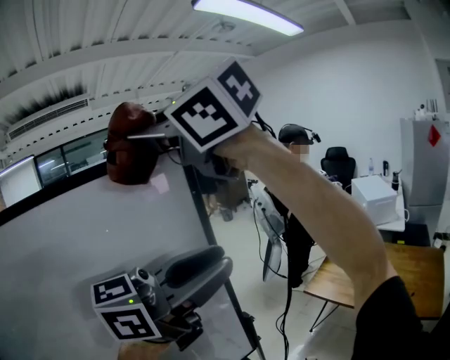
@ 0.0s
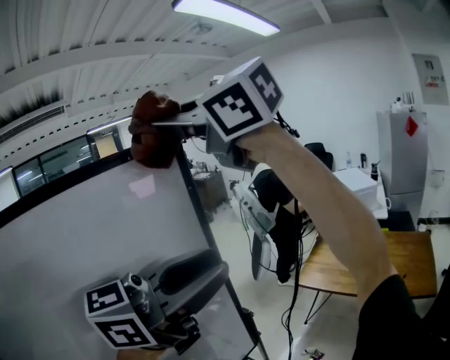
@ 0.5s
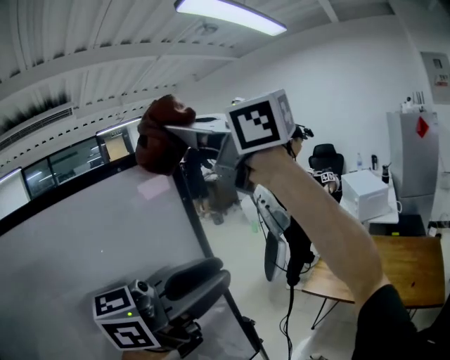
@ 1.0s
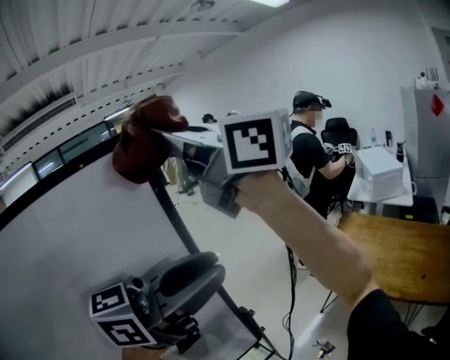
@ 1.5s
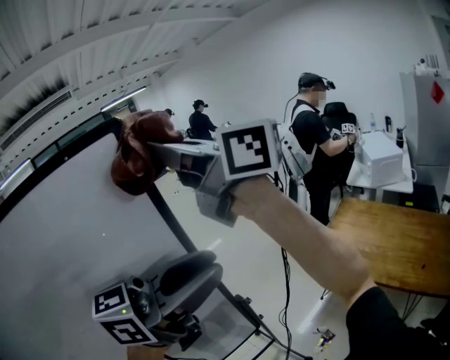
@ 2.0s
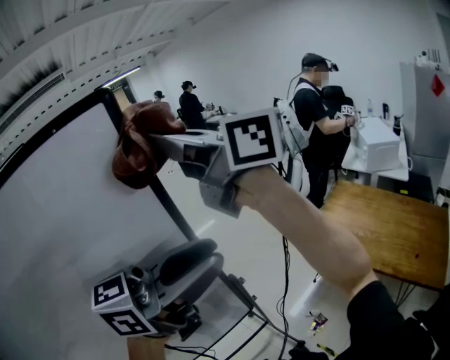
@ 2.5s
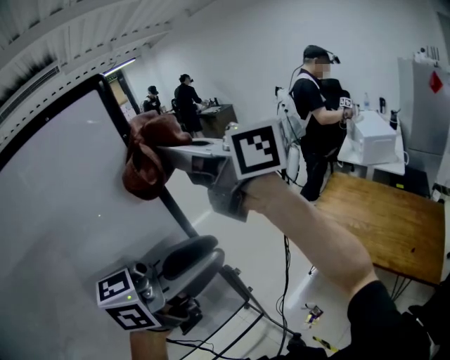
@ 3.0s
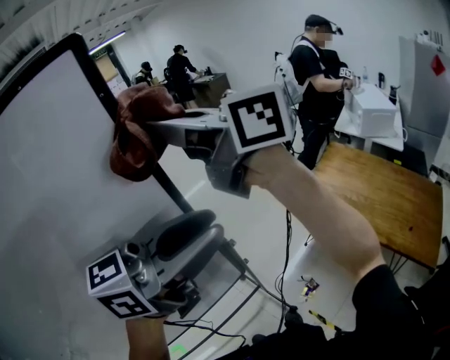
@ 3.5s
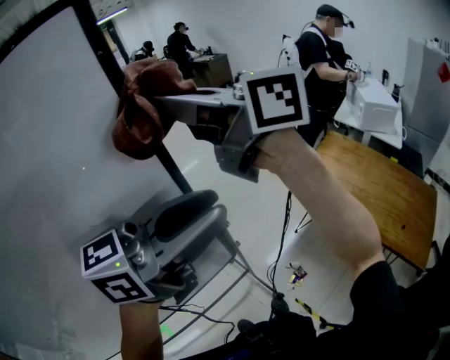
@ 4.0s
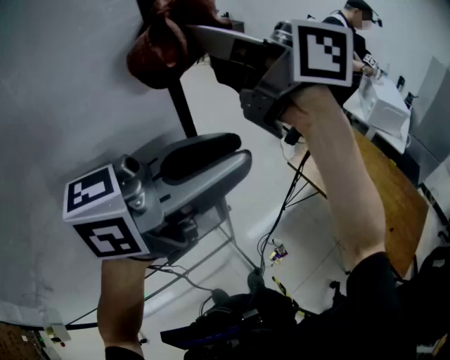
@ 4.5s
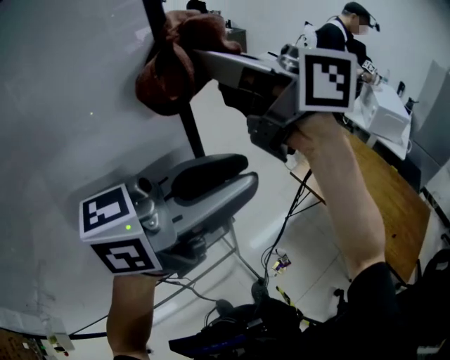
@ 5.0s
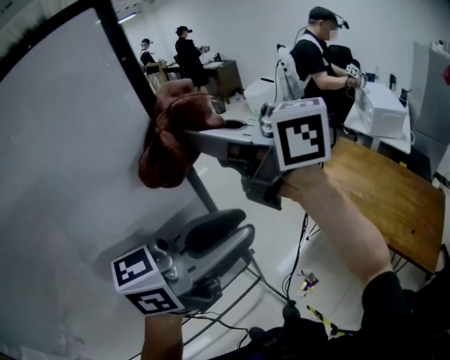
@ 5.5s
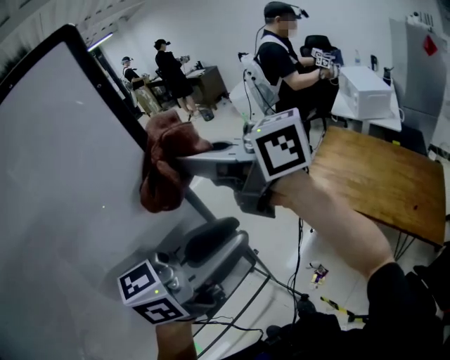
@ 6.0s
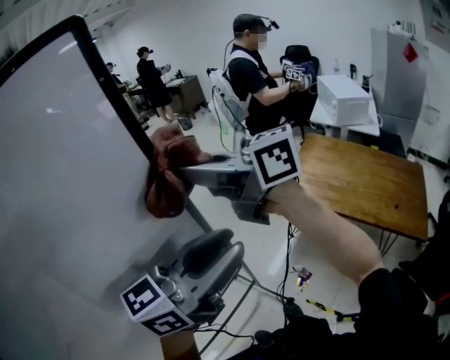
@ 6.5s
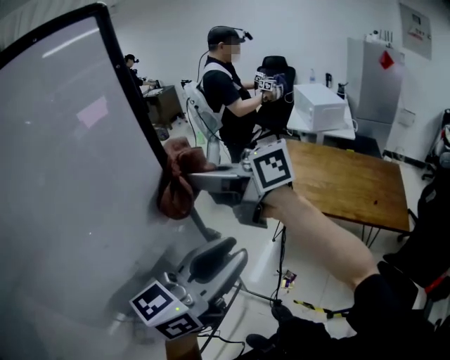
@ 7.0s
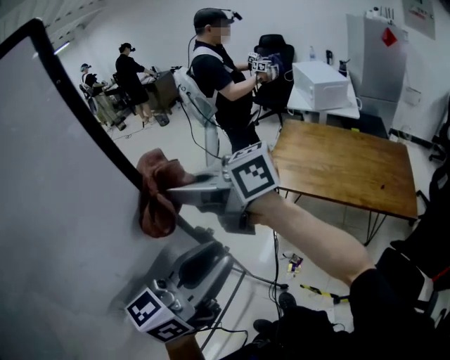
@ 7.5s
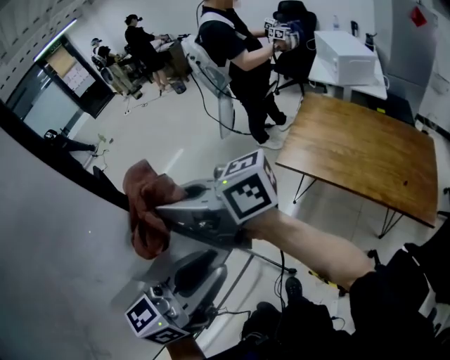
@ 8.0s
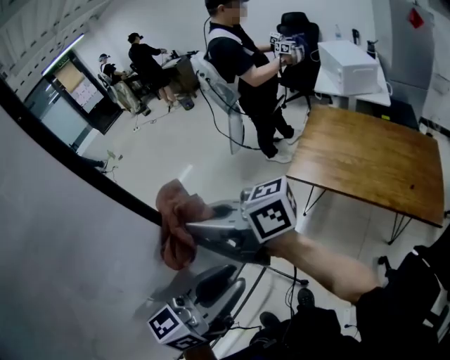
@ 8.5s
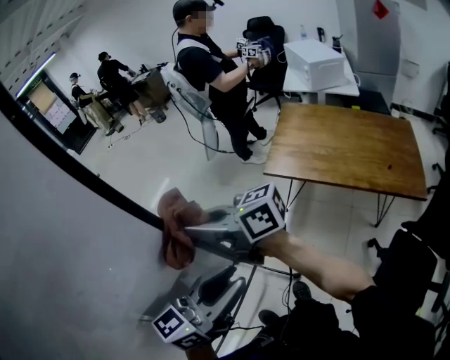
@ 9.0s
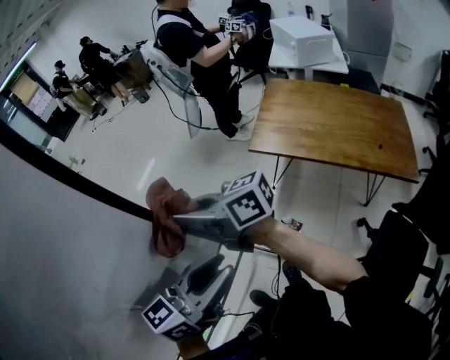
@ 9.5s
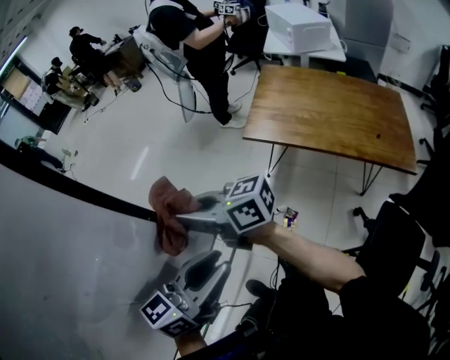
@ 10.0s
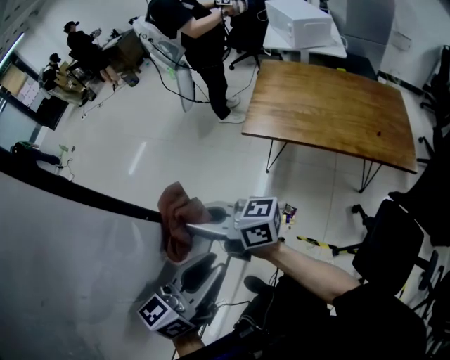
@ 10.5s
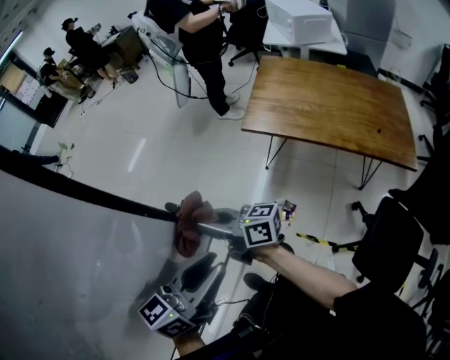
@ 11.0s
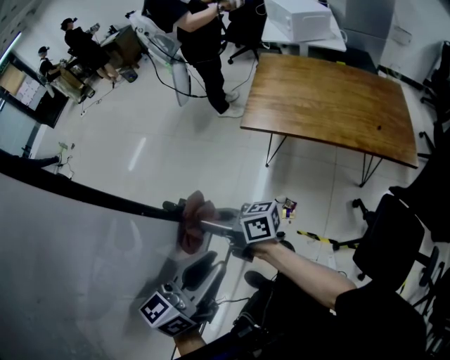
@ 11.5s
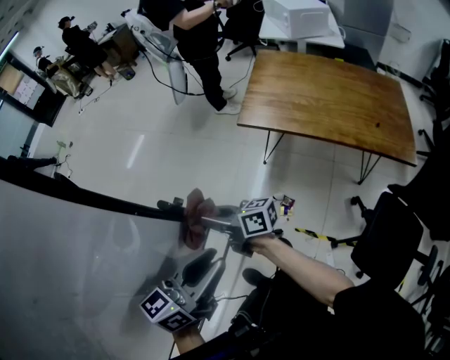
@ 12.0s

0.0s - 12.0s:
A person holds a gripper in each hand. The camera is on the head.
0.0s - 2.0s: The right gripper moves roughly 15 cm, and turns by about 50 degrees, while the left gripper ends up approximately 5 cm from where it was.
2.0s - 4.0s: The right gripper shifts roughly 15 cm downward; the left gripper travels downward by roughly 10 cm.
4.0s - 6.0s: The grippers make only small movements.
6.0s - 8.0s: Both grippers travel together downward, some 15 cm.
8.0s - 10.0s: Both grippers move downward, approximately 15 cm. The right gripper turns by some 20 degrees.
10.0s - 12.0s: The left gripper changes place by approximately 5 cm; the right gripper travels downward by some 15 cm, and swivels about 20 degrees.

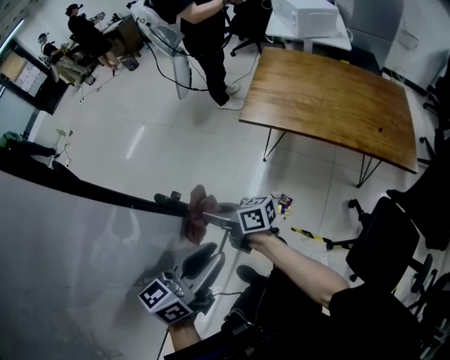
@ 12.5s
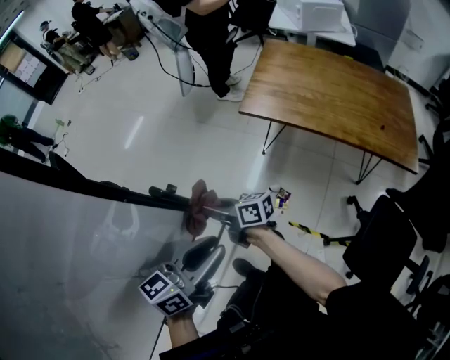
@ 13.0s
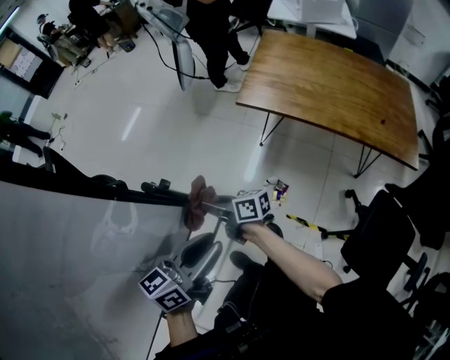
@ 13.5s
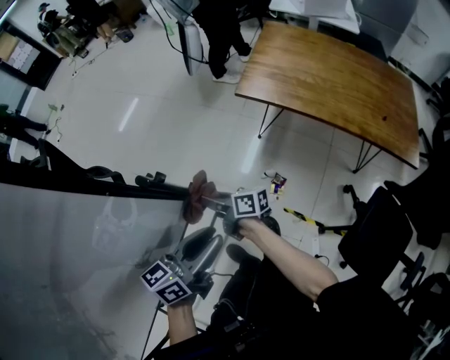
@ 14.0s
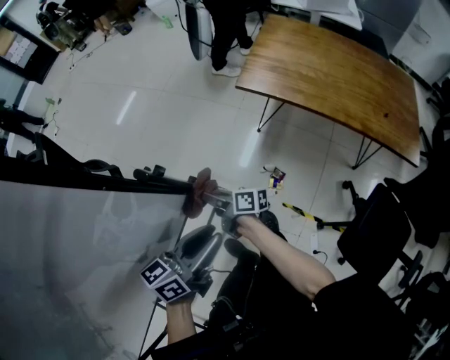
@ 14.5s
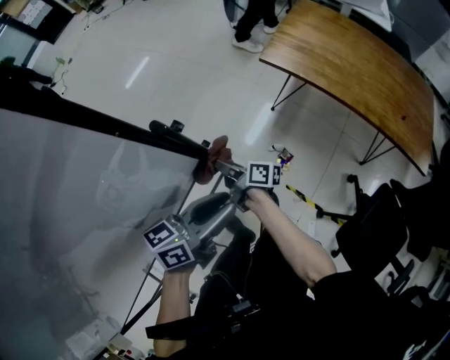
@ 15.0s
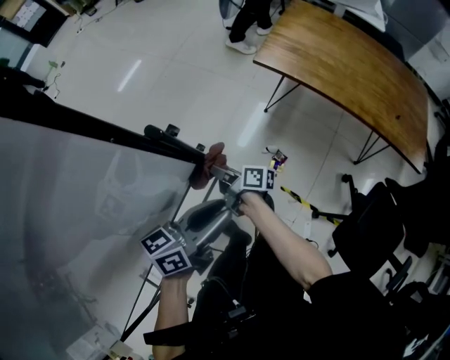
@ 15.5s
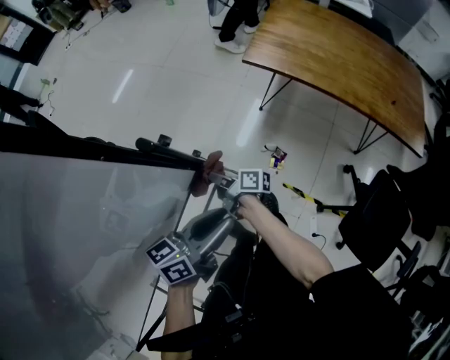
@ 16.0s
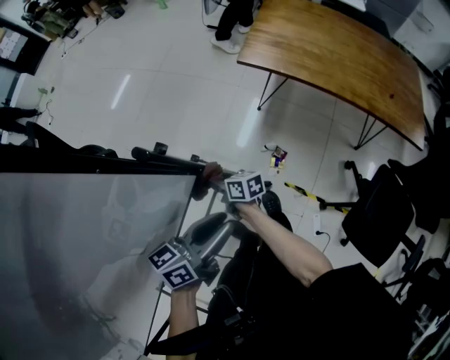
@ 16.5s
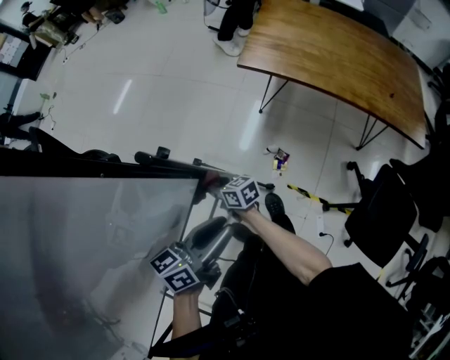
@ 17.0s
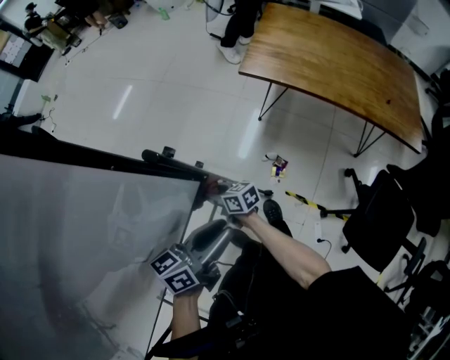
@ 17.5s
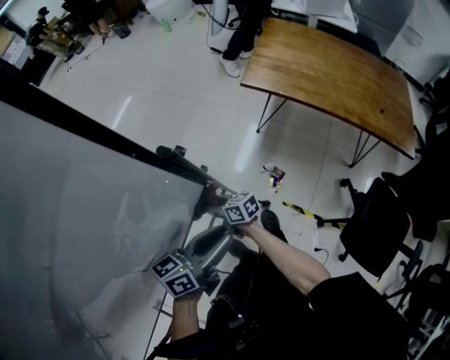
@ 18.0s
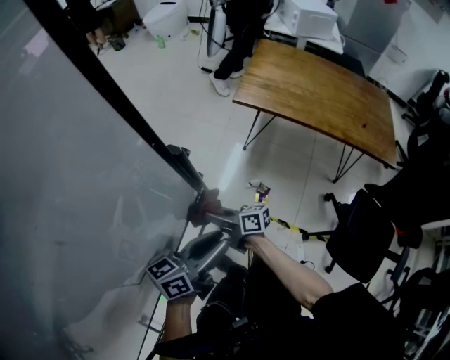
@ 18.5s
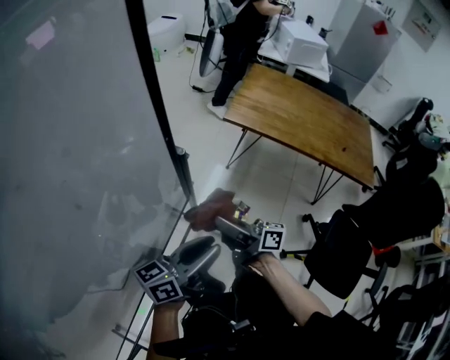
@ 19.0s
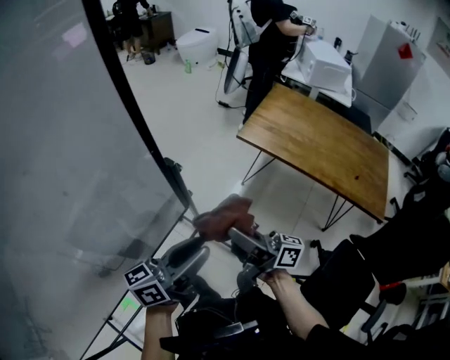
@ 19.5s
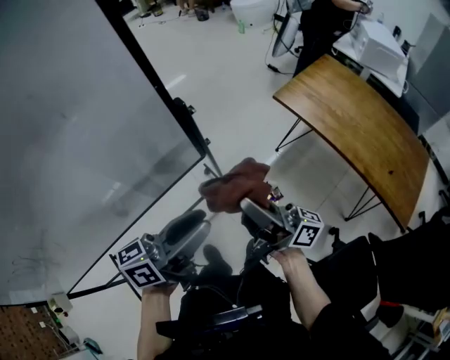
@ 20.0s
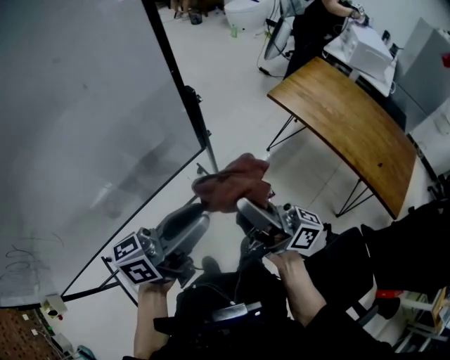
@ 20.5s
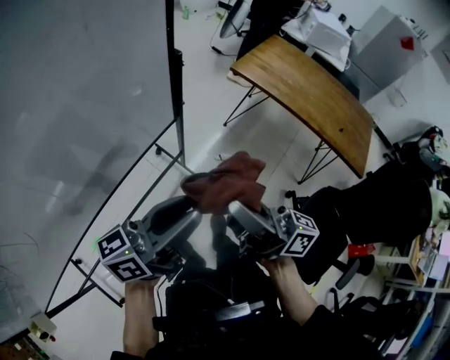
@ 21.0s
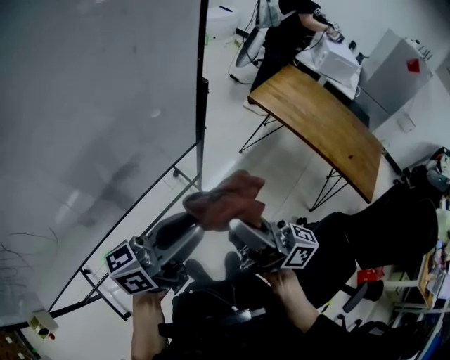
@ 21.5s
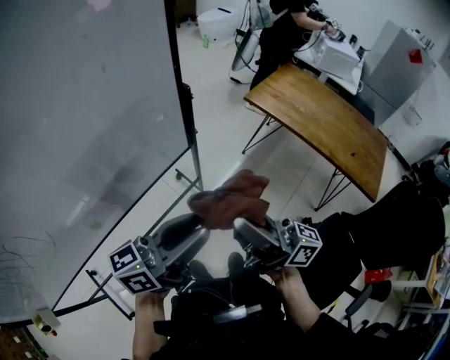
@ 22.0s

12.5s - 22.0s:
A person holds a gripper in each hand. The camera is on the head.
12.5s - 14.5s: The right gripper heads downward, covering some 15 cm, and swivels roughly 20 degrees; the left gripper shifts about 10 cm downward.
14.5s - 16.5s: The right gripper heads downward, covering about 10 cm, and turns by some 30 degrees.
16.5s - 18.0s: The right gripper goes about 5 cm to the left and backward.
18.0s - 20.0s: The left gripper shifts approximately 15 cm upward, backward and to the right, and swivels some 30 degrees. Meanwhile the right gripper moves upward and to the right, some 40 cm, and tips its fingers upward by some 50 degrees.
20.0s - 22.0s: The right gripper is displaced backward and upward by about 20 cm, while the left gripper goes roughly 10 cm backward.

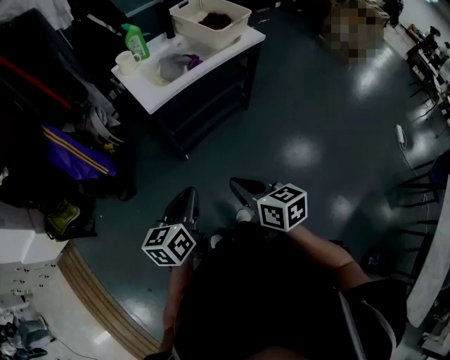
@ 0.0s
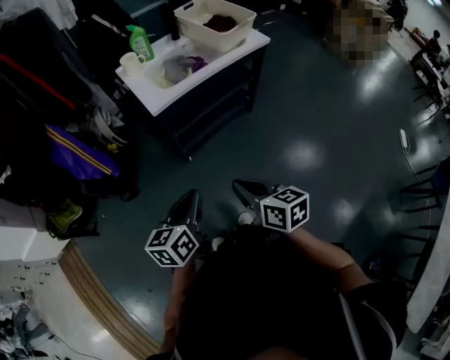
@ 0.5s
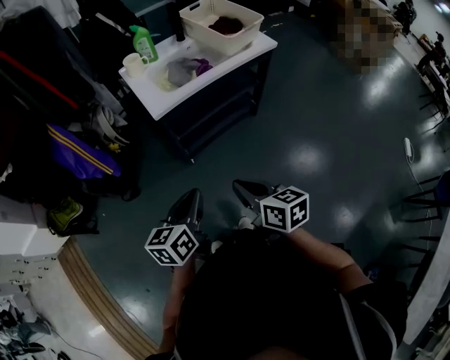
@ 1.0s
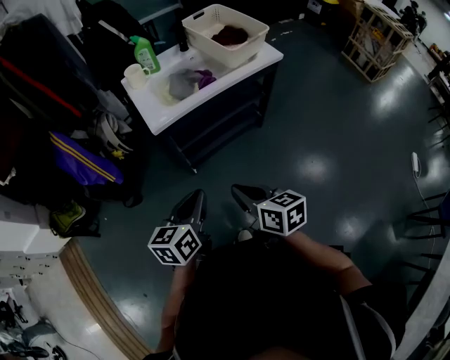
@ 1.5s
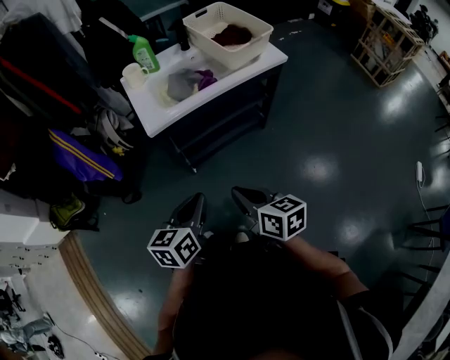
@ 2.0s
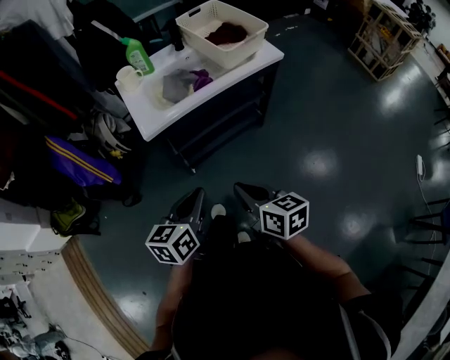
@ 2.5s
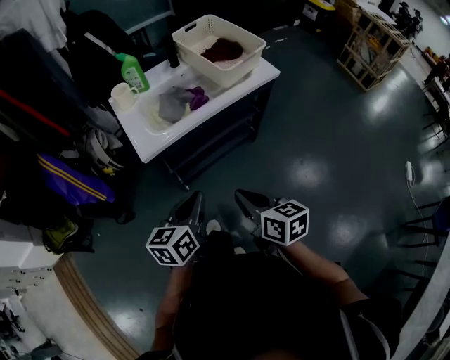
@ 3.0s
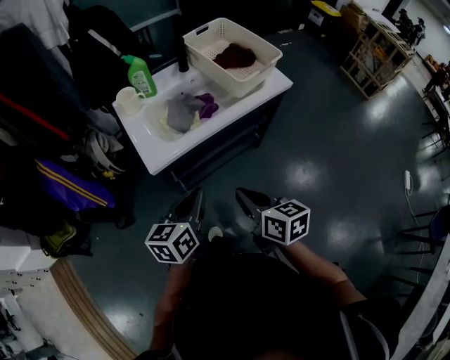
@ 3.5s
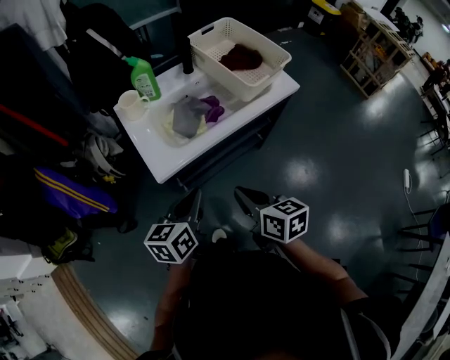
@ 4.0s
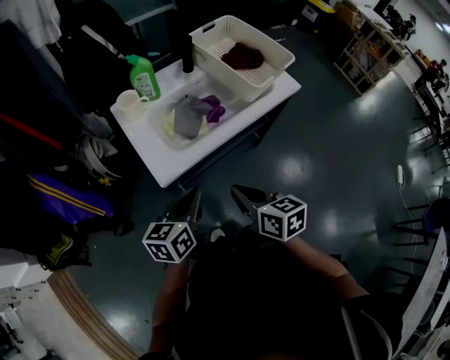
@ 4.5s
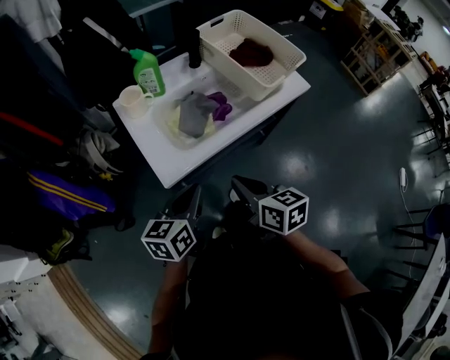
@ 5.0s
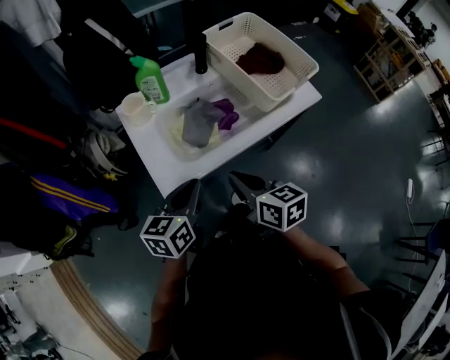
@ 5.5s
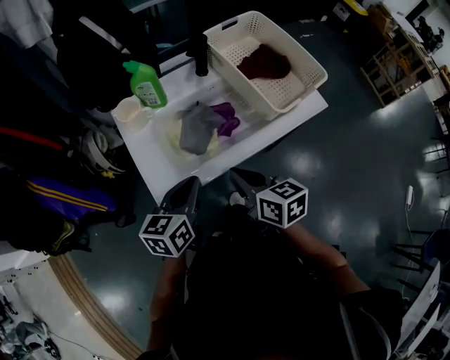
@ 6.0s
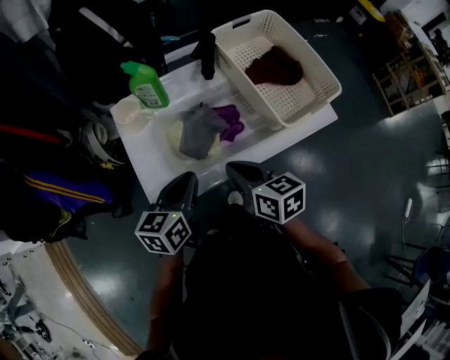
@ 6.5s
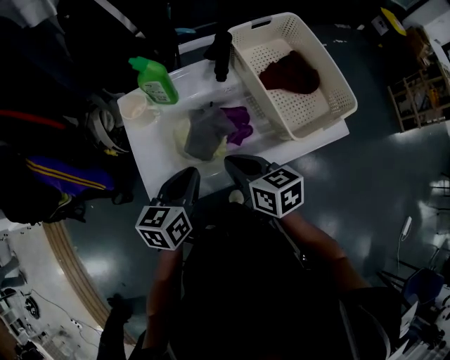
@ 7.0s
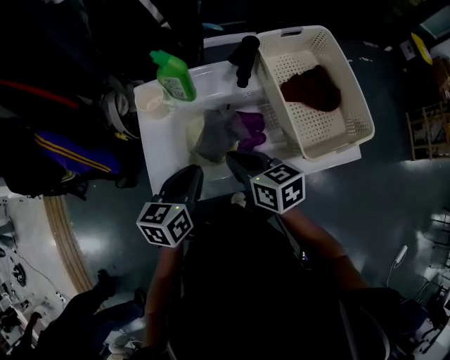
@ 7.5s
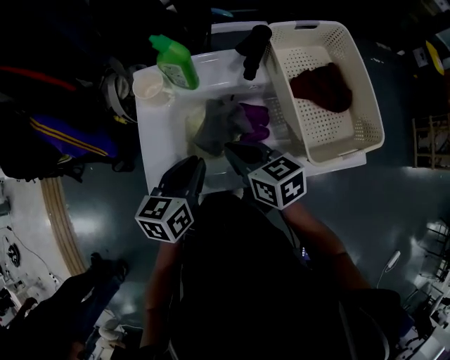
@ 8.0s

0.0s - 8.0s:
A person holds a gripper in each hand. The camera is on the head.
0.0s - 2.0s: The left gripper shifts some 15 cm to the right and forward. Meanwhile the right gripper heads forward and to the right, covering about 15 cm.
2.0s - 4.0s: The grippers both shift forward by about 20 cm.
4.0s - 6.0s: The grippers both shift forward by approximately 15 cm.
6.0s - 8.0s: The left gripper is displaced forward by approximately 10 cm, and turns by some 20 degrees, while the right gripper shifts roughly 15 cm forward, and turns by roughly 30 degrees.
